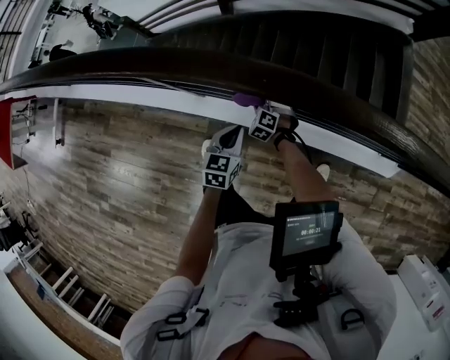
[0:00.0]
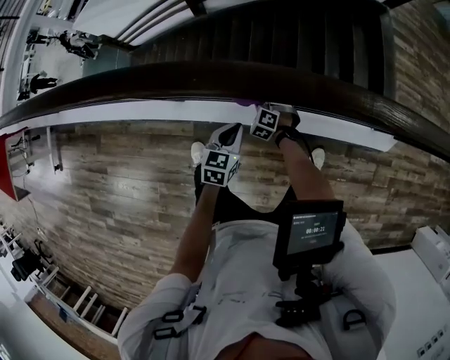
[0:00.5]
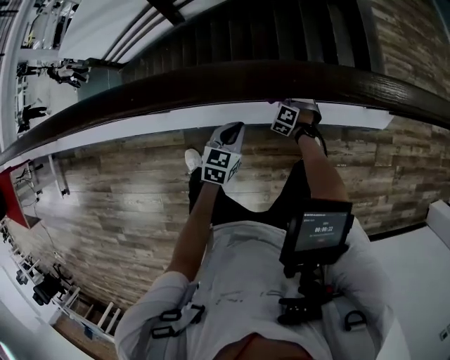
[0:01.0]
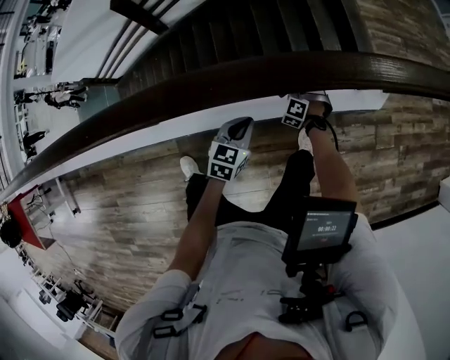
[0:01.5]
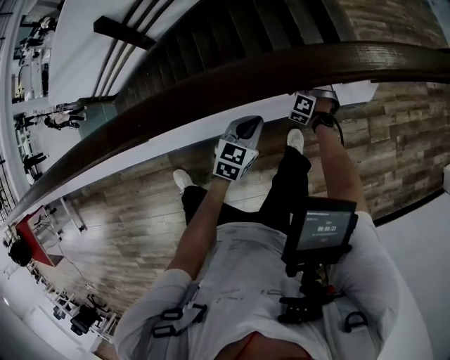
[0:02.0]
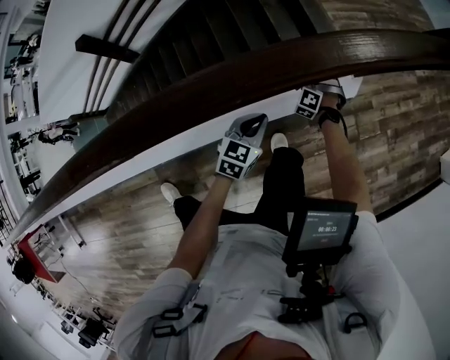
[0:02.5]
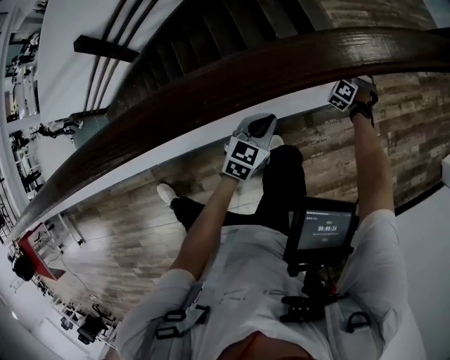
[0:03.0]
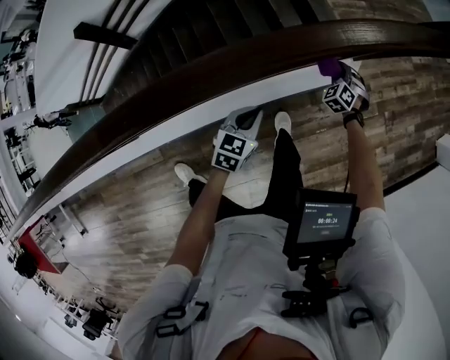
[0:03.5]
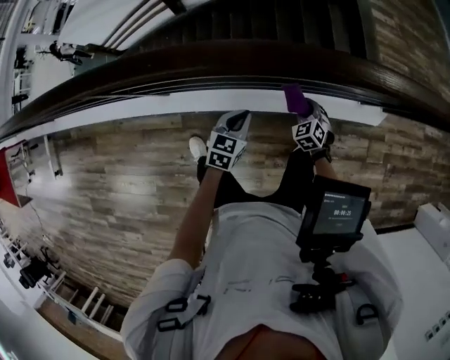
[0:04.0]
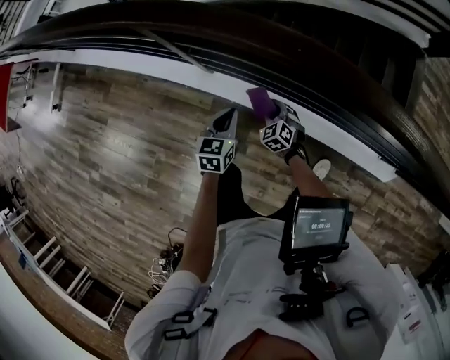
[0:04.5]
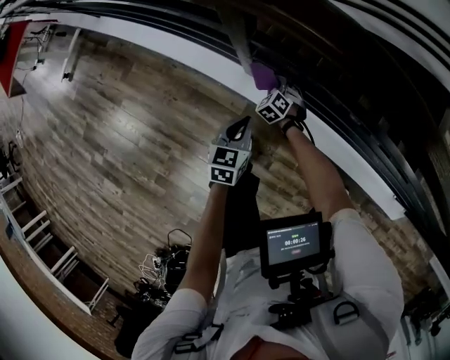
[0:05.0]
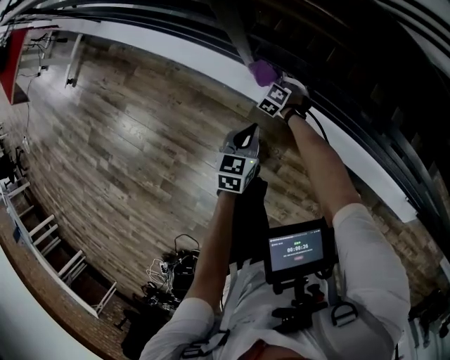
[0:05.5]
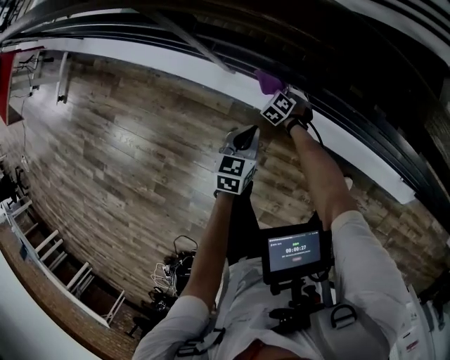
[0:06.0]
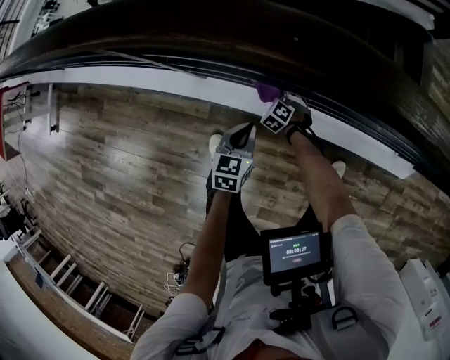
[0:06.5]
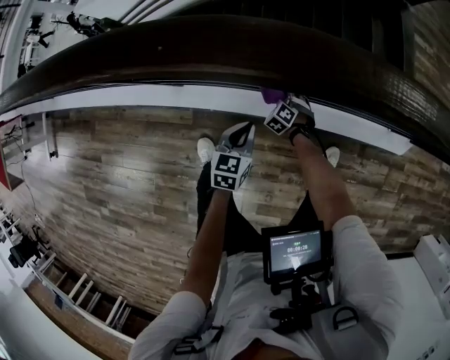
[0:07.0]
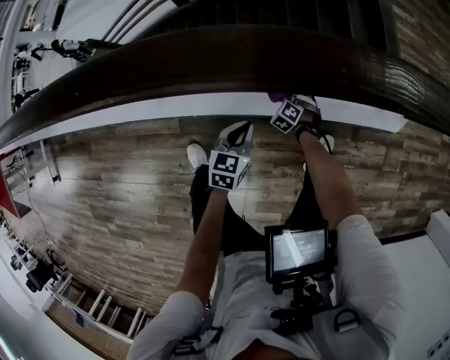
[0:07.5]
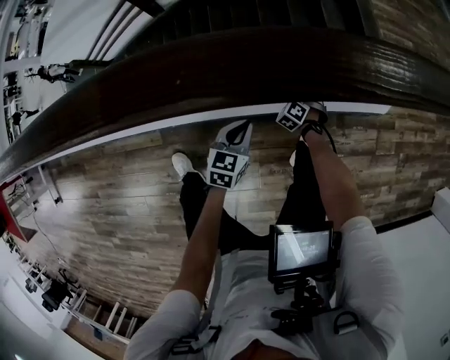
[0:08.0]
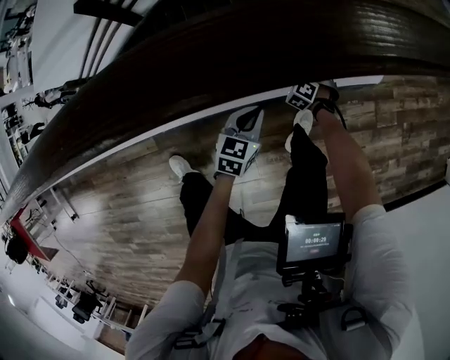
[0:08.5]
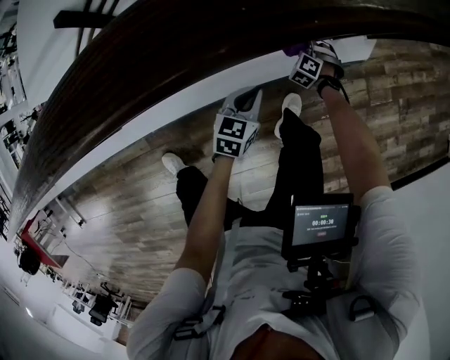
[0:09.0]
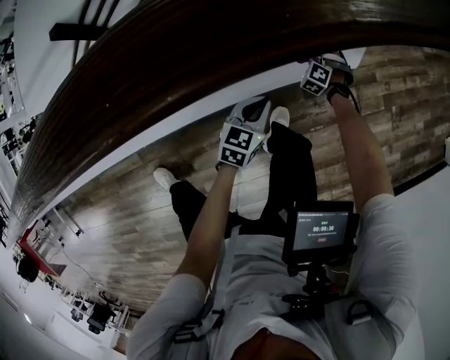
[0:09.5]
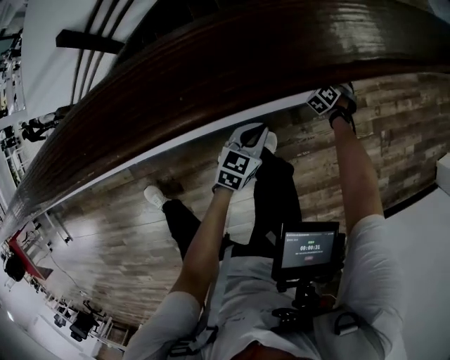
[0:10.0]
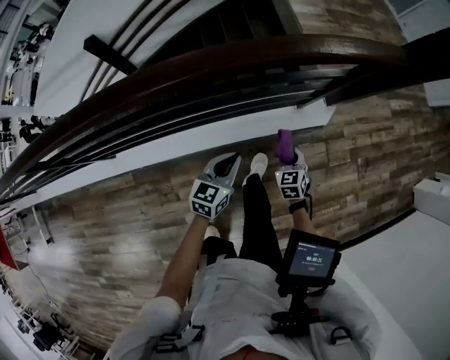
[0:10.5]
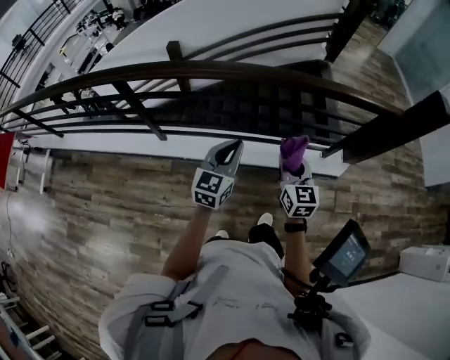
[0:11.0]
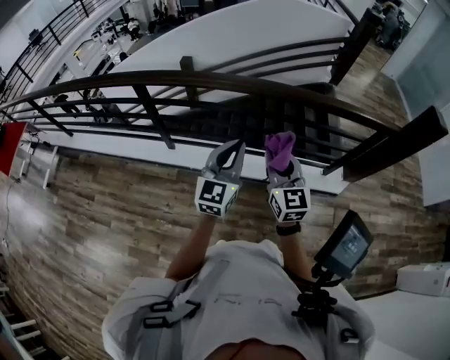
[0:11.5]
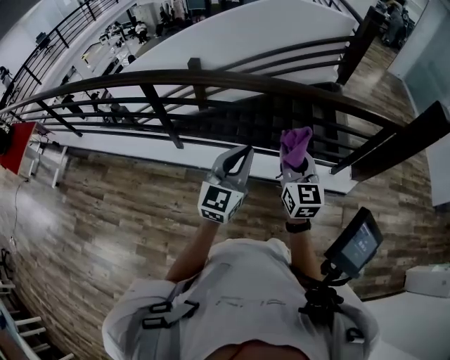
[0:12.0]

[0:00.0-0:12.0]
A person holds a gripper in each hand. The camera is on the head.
0:00.0 to 0:02.0: The two grippers travel together, about 50 cm. The left gripper changes its angle by roughly 40 degrees; the right gripper turns by approximately 40 degrees.
0:02.0 to 0:04.0: The left gripper shifts by some 20 cm. Meanwhile the right gripper changes place by some 25 cm, changes its angle by approximately 40 degrees, and closes up.
0:04.0 to 0:06.0: The right gripper ends up approximately 50 cm from where it was, and changes its angle by approximately 30 degrees. The left gripper ends up about 30 cm from where it was, and turns by some 30 degrees.
0:06.0 to 0:08.0: The right gripper ends up roughly 50 cm from where it was, and rotates some 30 degrees. Meanwhile the left gripper moves about 40 cm, and rotates about 30 degrees.
0:08.0 to 0:10.0: The right gripper moves about 50 cm, and rotates some 20 degrees; the left gripper changes place by approximately 35 cm.
0:10.0 to 0:12.0: Both grippers are carried roughly 50 cm. Both grippers travel together upward, some 60 cm. The right gripper tilts its fingers about 50 degrees upward. The left gripper tips its fingers upward by about 40 degrees.

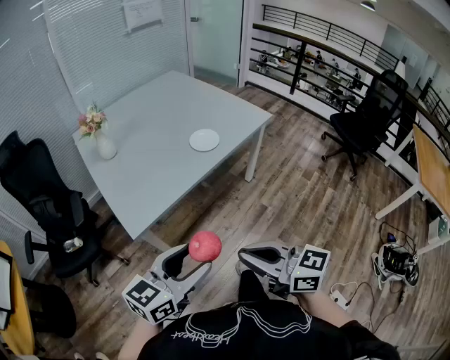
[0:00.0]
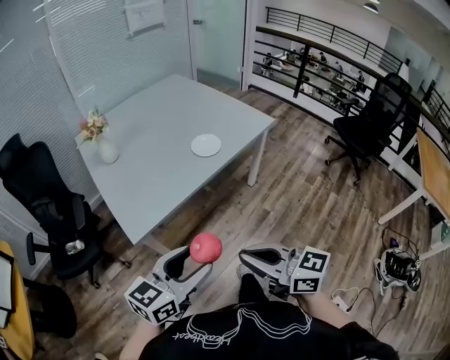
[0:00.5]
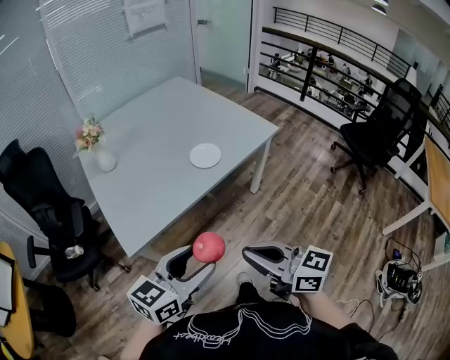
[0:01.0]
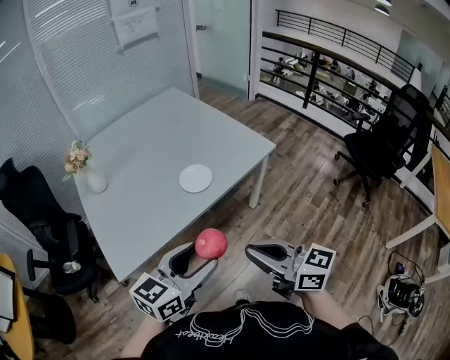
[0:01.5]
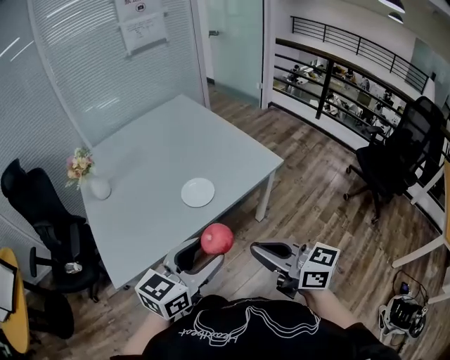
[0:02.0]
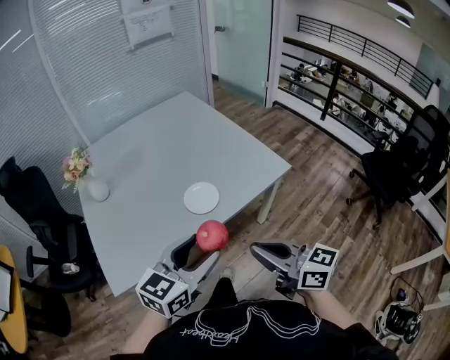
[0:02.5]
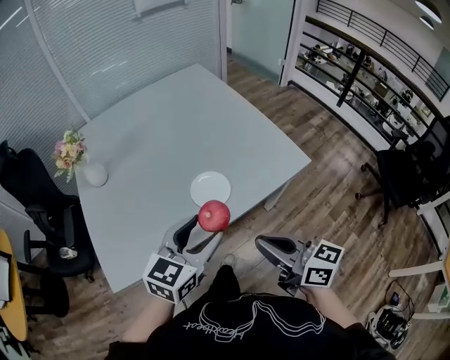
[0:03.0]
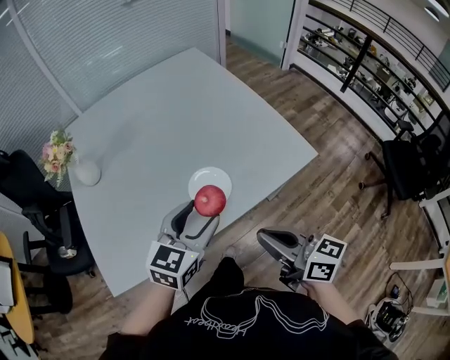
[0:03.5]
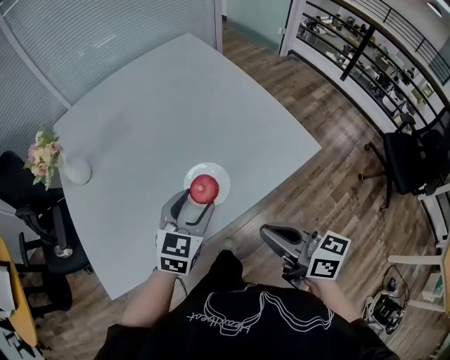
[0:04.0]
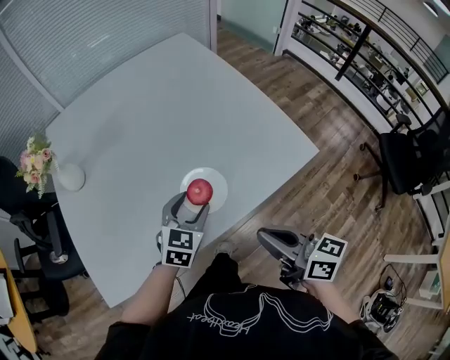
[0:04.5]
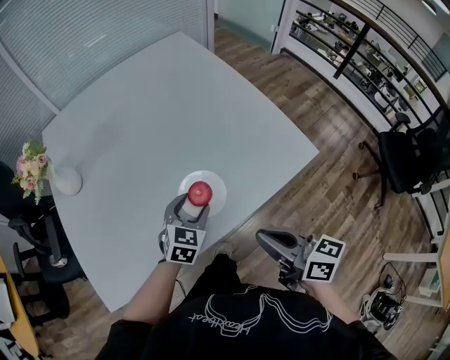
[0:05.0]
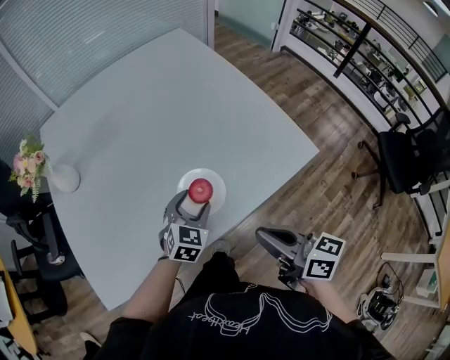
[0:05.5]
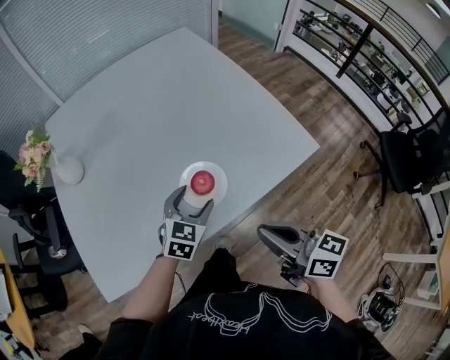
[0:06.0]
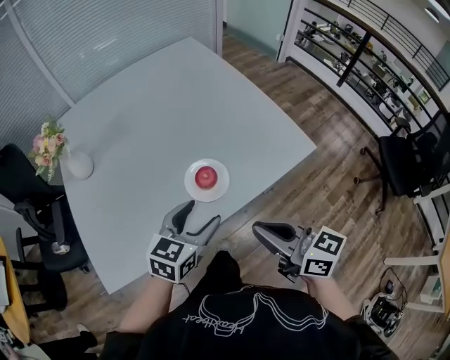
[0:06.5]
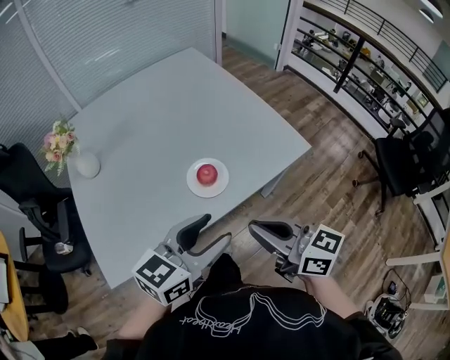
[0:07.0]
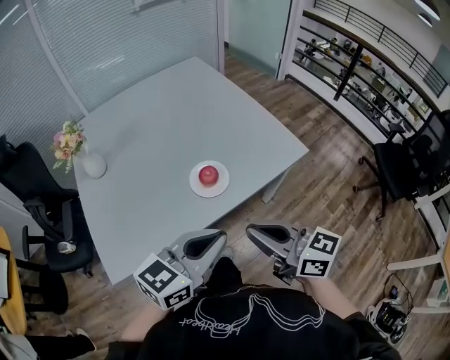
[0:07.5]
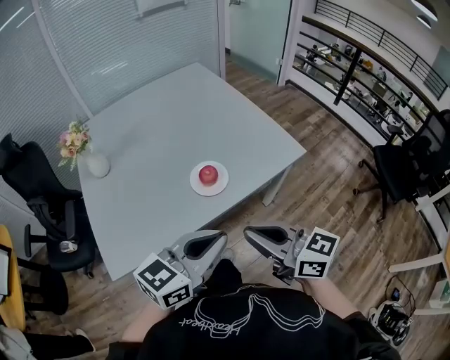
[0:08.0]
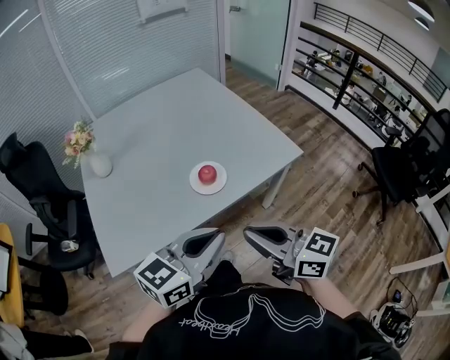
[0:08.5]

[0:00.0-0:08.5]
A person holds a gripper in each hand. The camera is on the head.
0:00.0 to 0:02.0: Both grippers move forward and to the right, approximately 35 cm.
0:02.0 to 0:04.0: The grippers both shift forward and downward by some 30 cm. The left gripper turns by approximately 30 degrees.
0:04.0 to 0:06.5: The left gripper is displaced backward by some 5 cm, and moves roughly 10 cm downward and comes back.
0:06.5 to 0:08.5: The left gripper moves backward and upward, some 25 cm, swivels approximately 20 degrees, and closes up; the right gripper moves backward and upward, about 15 cm.

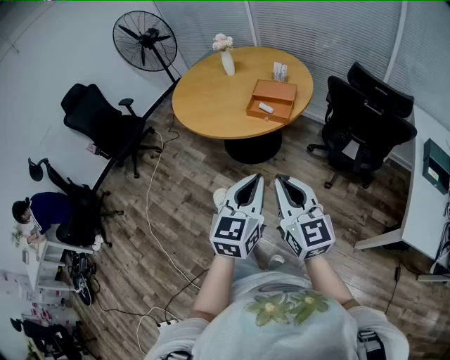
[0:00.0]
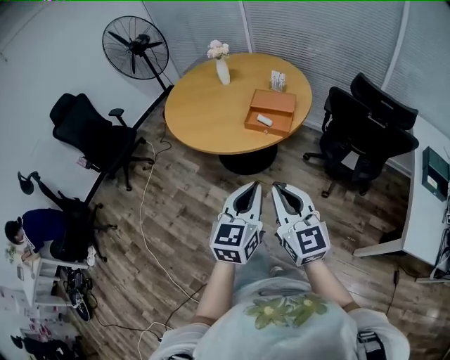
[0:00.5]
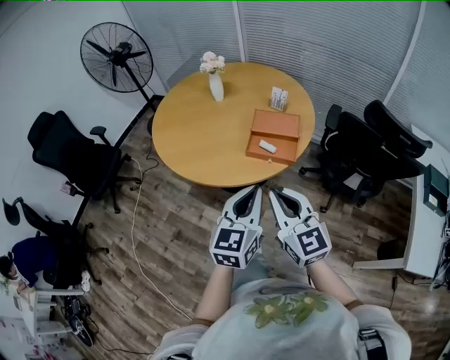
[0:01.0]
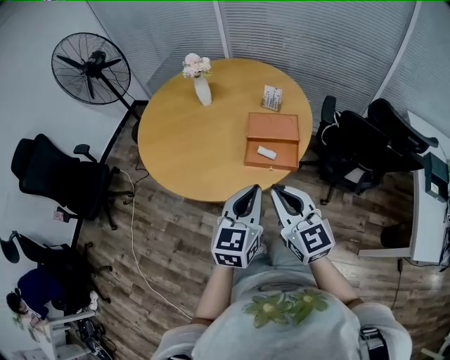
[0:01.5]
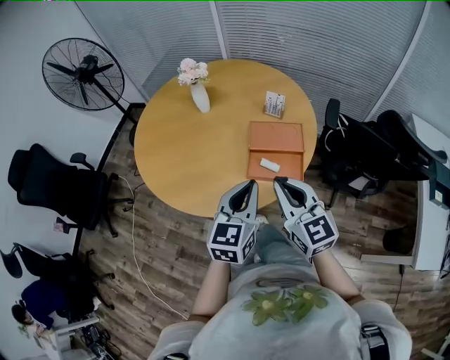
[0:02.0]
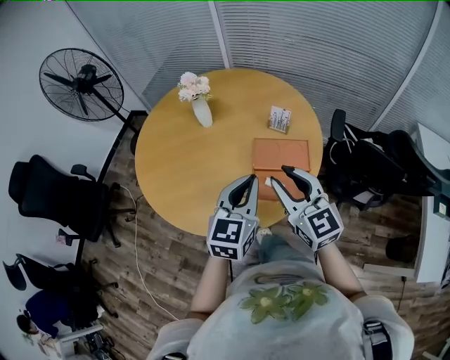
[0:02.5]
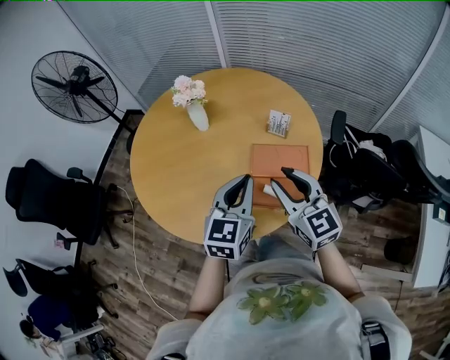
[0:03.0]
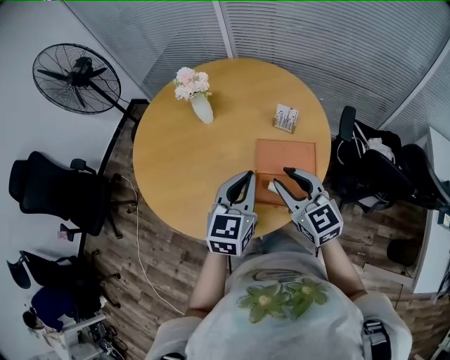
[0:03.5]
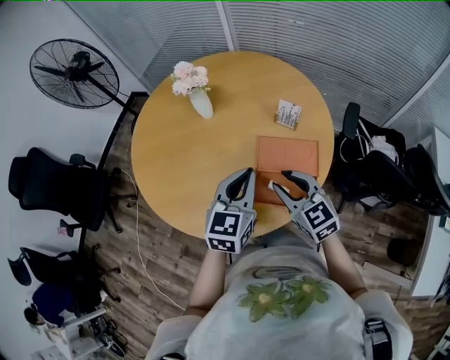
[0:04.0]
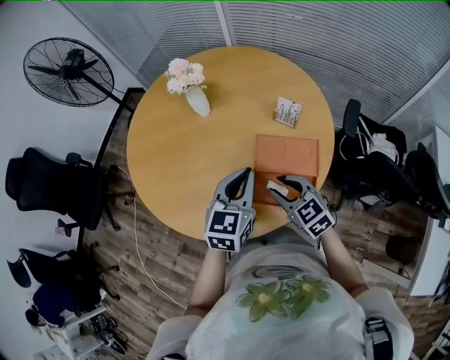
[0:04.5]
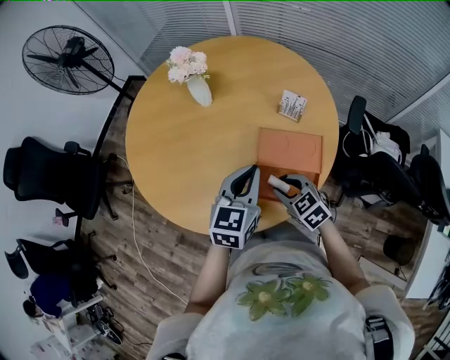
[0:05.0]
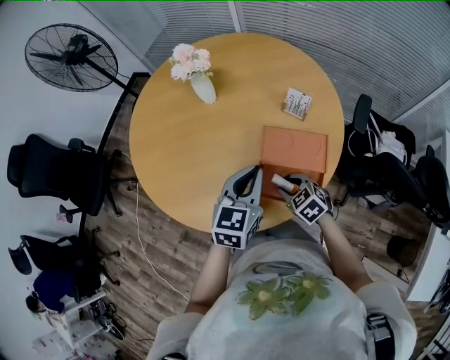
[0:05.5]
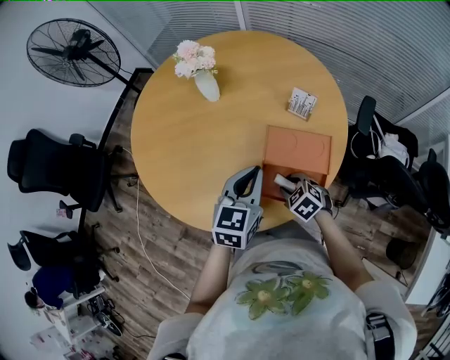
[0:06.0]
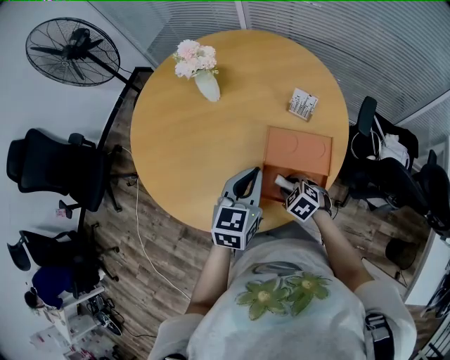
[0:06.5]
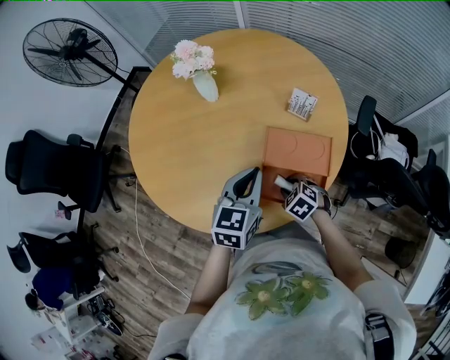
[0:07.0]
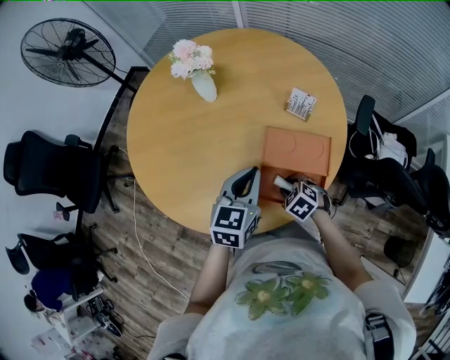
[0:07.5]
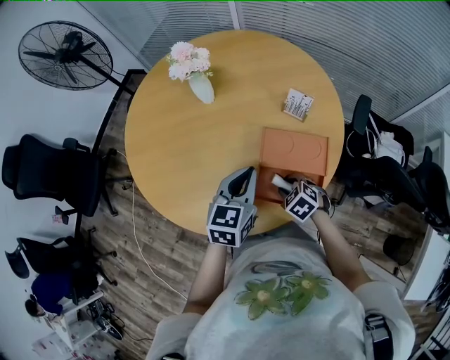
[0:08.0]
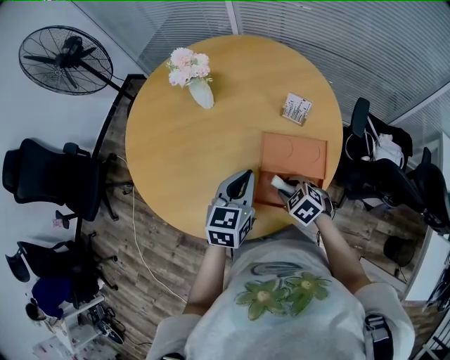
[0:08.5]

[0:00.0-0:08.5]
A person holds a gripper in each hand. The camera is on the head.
0:00.0 to 0:02.0: Both grippers are carried forward, roughly 50 cm.
0:02.0 to 0:04.0: The right gripper travels forward and downward by about 20 cm, and opens up; the left gripper shifts about 20 cm forward.
0:04.0 to 0:06.5: The left gripper shifts roughly 5 cm downward, while the right gripper heads downward, covering about 20 cm, and tips its fingers downward by some 40 degrees.
0:06.5 to 0:08.5: The grippers stay close to where they were, moving slightly.
